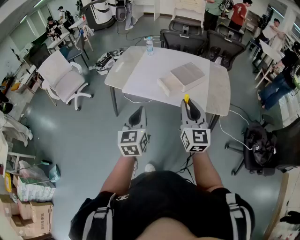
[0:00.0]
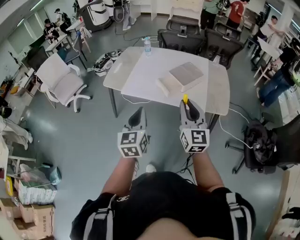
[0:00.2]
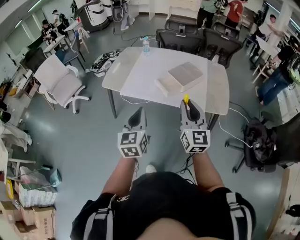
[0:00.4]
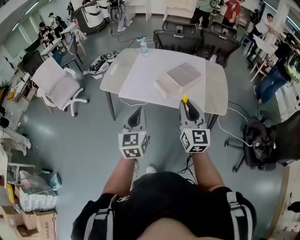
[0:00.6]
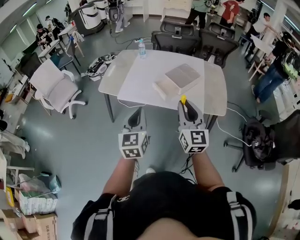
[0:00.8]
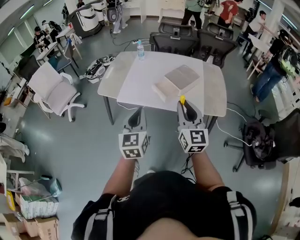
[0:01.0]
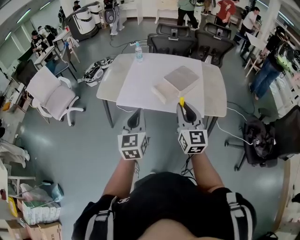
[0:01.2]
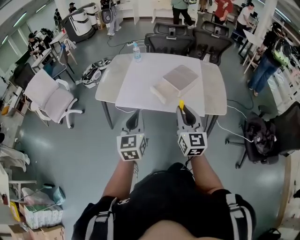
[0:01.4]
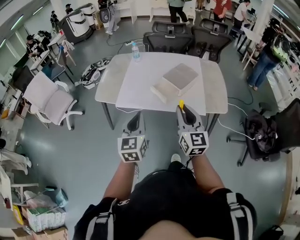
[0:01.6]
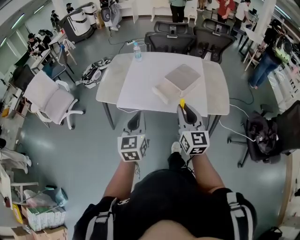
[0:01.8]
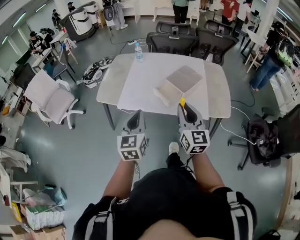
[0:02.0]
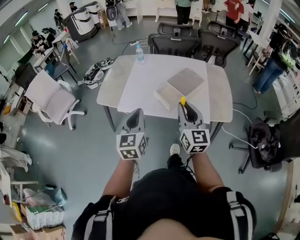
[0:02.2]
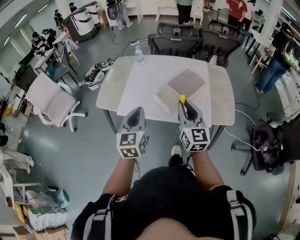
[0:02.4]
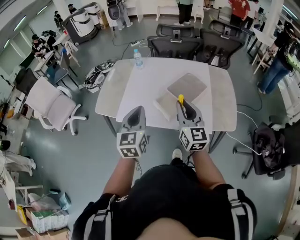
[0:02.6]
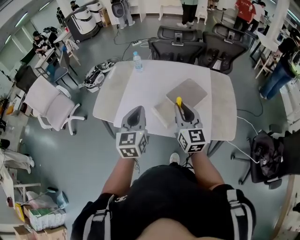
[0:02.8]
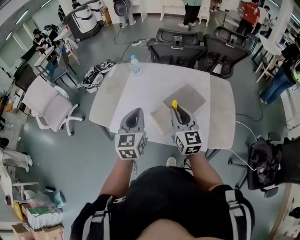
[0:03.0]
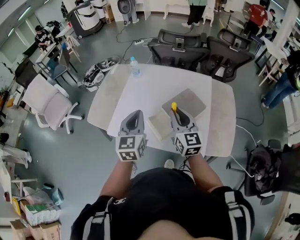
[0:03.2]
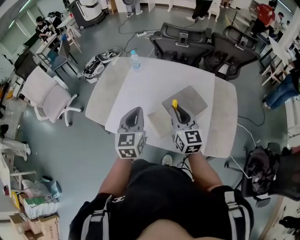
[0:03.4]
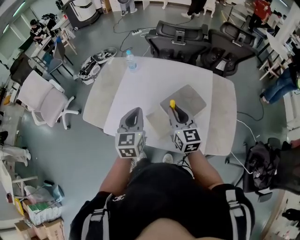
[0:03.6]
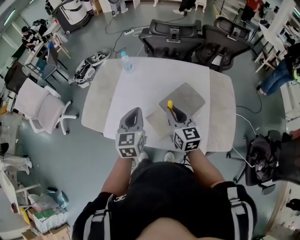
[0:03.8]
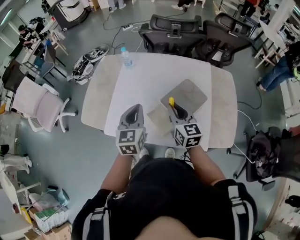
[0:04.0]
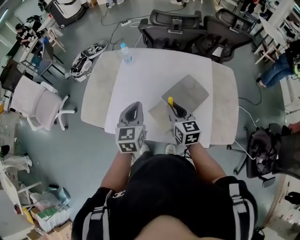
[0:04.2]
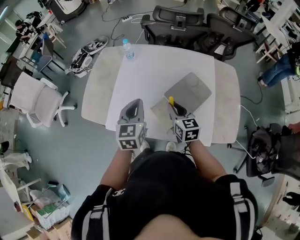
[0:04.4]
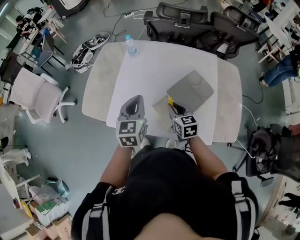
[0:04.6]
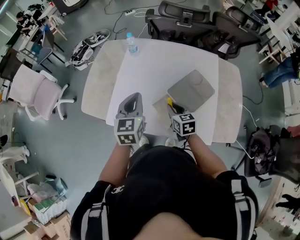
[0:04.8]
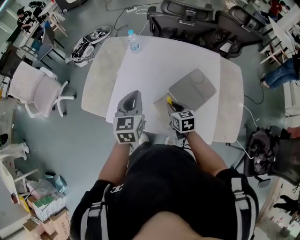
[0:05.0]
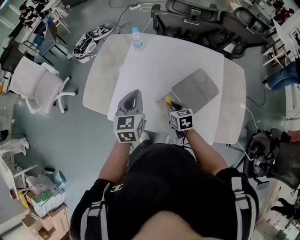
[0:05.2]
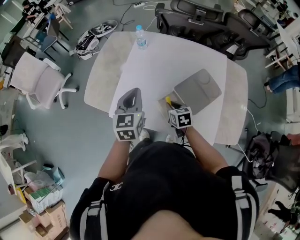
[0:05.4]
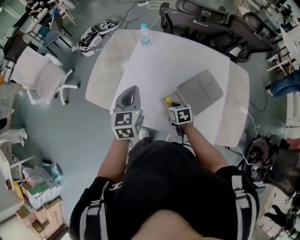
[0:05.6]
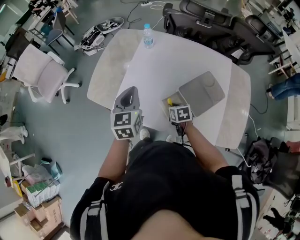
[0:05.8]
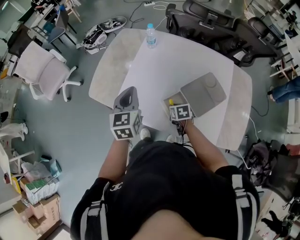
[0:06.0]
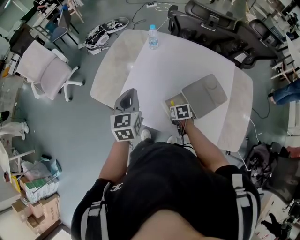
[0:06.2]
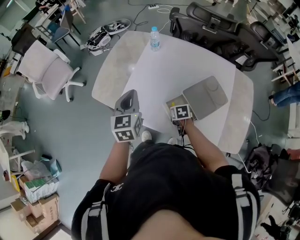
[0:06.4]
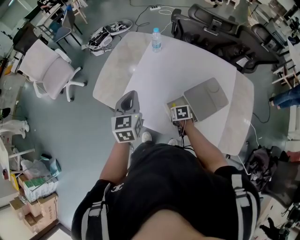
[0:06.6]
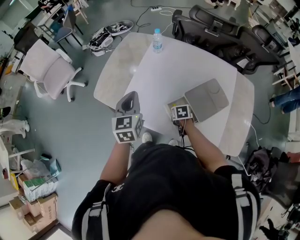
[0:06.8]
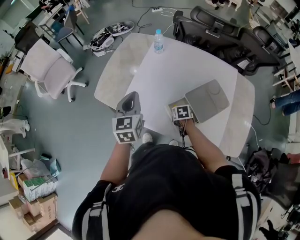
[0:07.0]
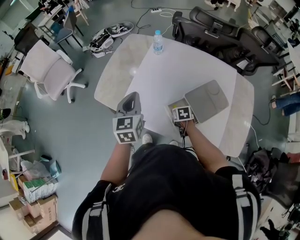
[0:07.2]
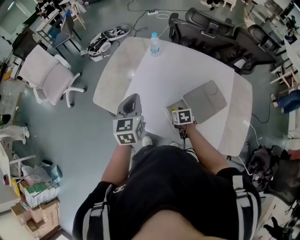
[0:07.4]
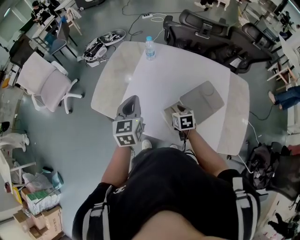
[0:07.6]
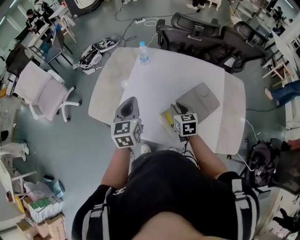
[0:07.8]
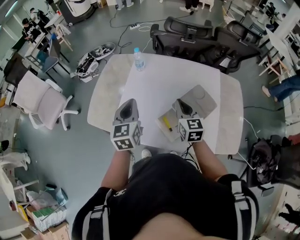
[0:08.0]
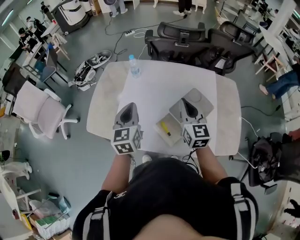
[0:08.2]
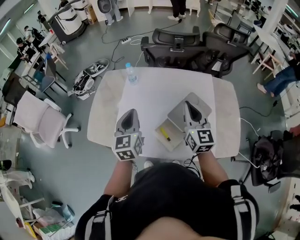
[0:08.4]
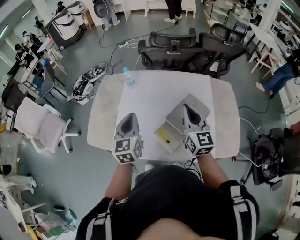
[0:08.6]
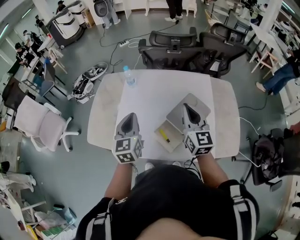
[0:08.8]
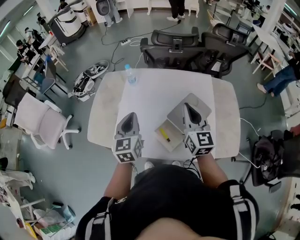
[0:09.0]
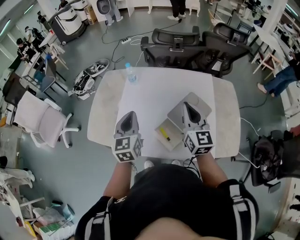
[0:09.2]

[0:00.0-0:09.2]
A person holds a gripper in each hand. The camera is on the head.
0:00.0 to 0:01.6: The two grippers go roughly 5 cm forward.
0:01.6 to 0:03.0: Both grippers travel together forward, some 25 cm.
0:03.0 to 0:04.6: The right gripper goes some 20 cm downward and forward, and rotates approximately 30 degrees, while the left gripper shifts approximately 15 cm forward and downward.
0:04.6 to 0:06.2: The left gripper shifts roughly 10 cm to the left; the right gripper is displaced downward by some 15 cm, and tilts its fingers approximately 30 degrees downward.
0:06.2 to 0:07.6: The right gripper moves upward, some 10 cm.
0:07.6 to 0:09.2: The right gripper travels upward by some 25 cm, angles its fingers upward, by some 50 degrees, and closes up; the left gripper heads to the right, covering some 5 cm.

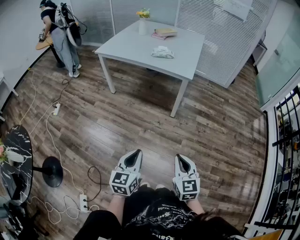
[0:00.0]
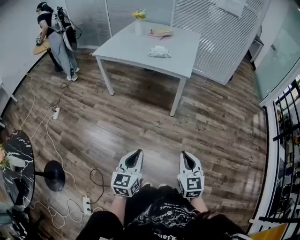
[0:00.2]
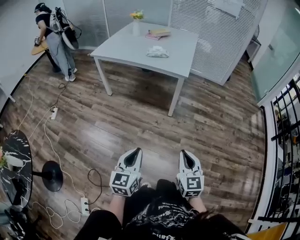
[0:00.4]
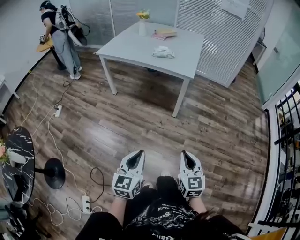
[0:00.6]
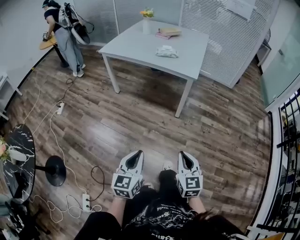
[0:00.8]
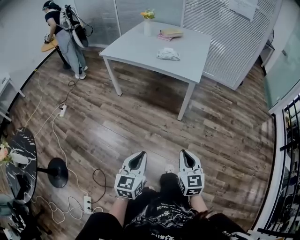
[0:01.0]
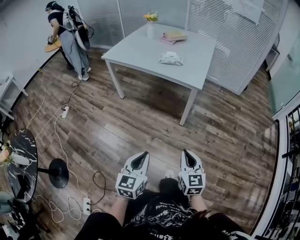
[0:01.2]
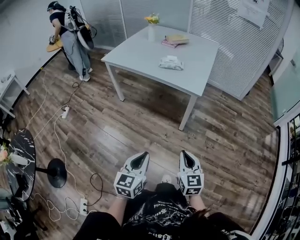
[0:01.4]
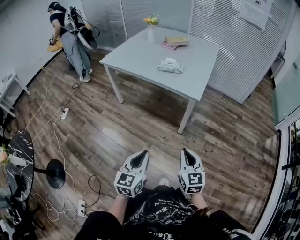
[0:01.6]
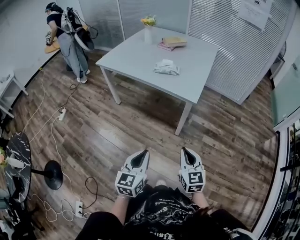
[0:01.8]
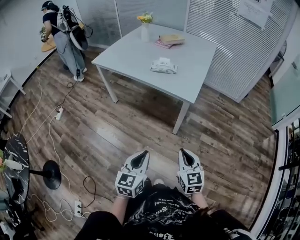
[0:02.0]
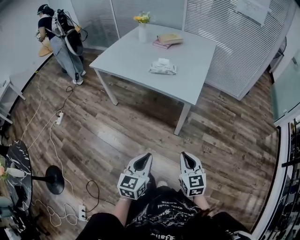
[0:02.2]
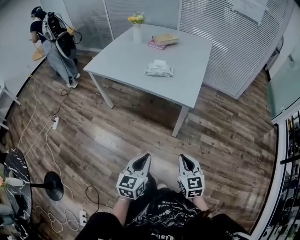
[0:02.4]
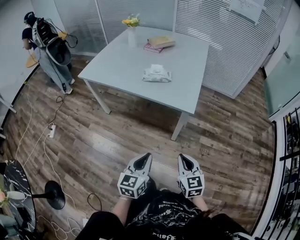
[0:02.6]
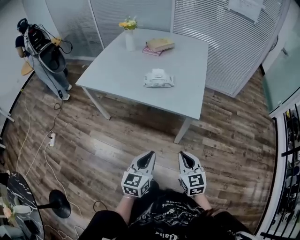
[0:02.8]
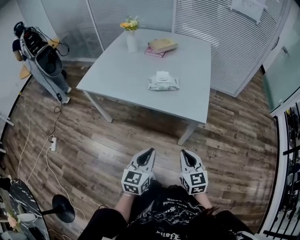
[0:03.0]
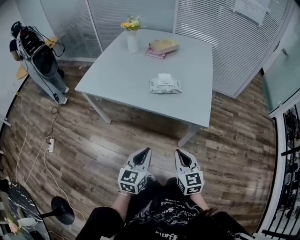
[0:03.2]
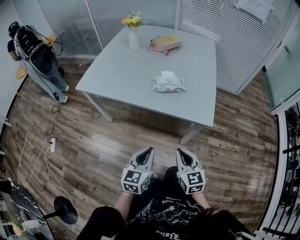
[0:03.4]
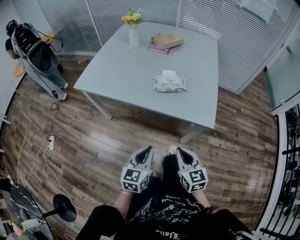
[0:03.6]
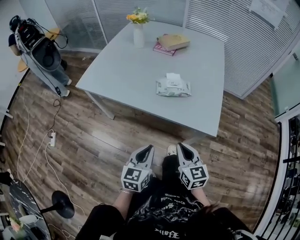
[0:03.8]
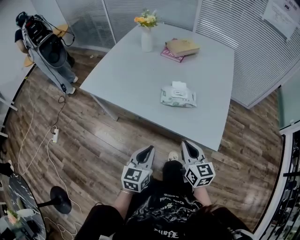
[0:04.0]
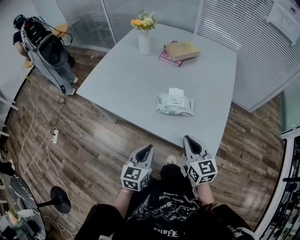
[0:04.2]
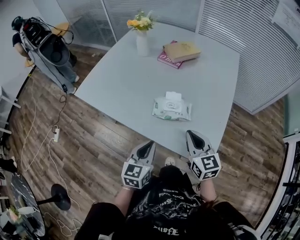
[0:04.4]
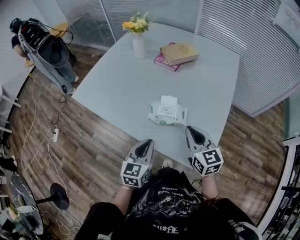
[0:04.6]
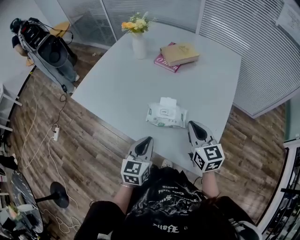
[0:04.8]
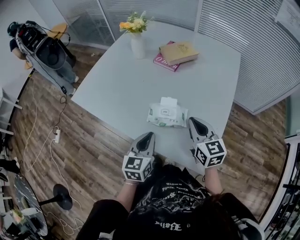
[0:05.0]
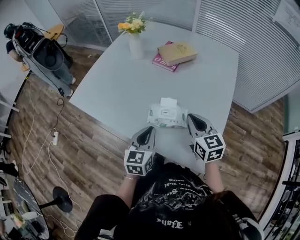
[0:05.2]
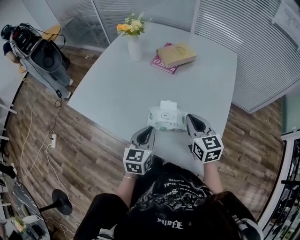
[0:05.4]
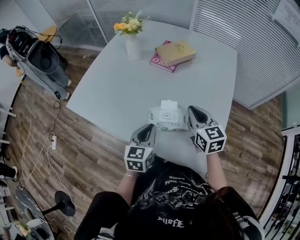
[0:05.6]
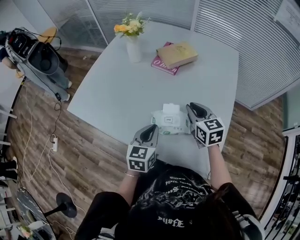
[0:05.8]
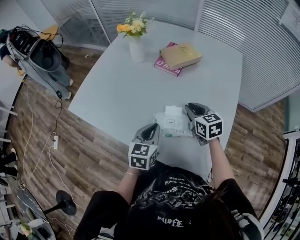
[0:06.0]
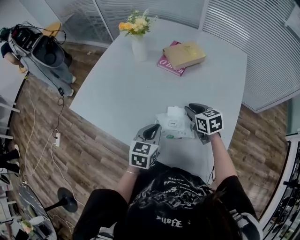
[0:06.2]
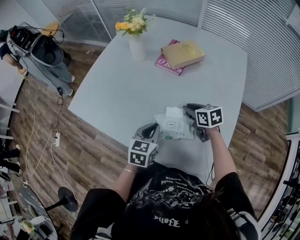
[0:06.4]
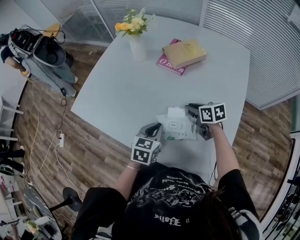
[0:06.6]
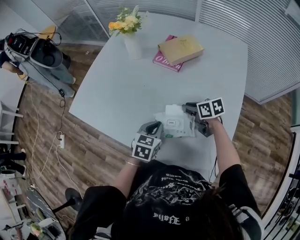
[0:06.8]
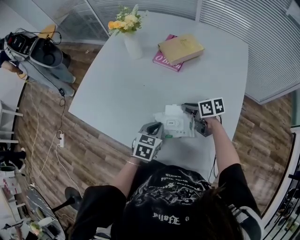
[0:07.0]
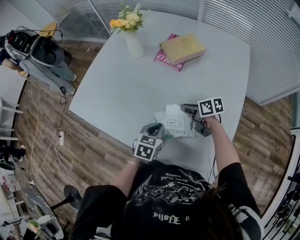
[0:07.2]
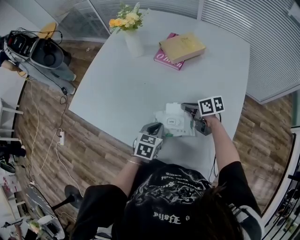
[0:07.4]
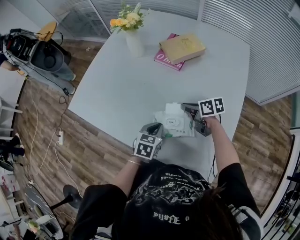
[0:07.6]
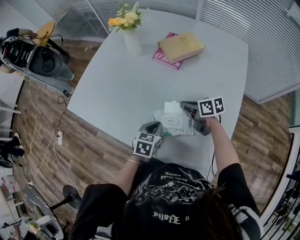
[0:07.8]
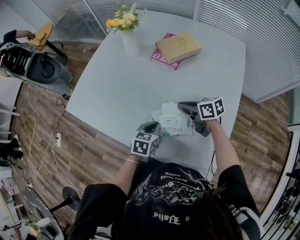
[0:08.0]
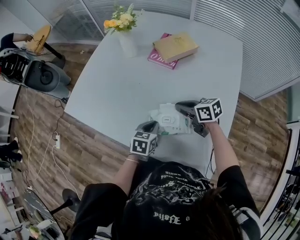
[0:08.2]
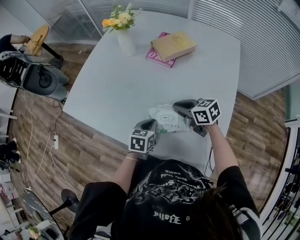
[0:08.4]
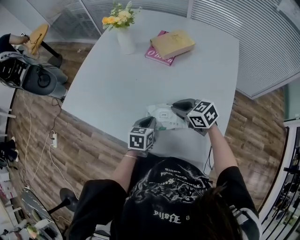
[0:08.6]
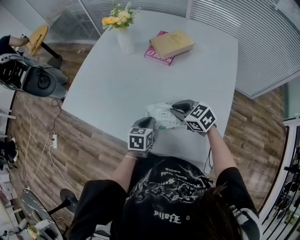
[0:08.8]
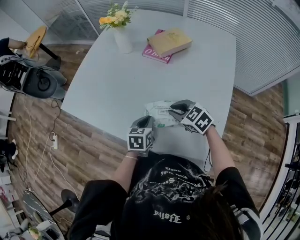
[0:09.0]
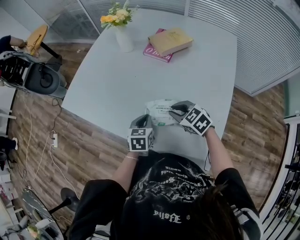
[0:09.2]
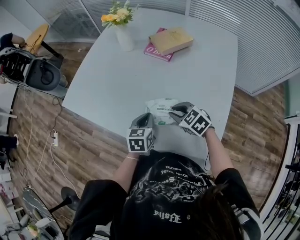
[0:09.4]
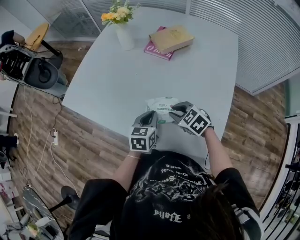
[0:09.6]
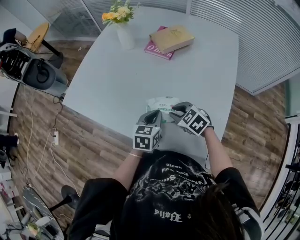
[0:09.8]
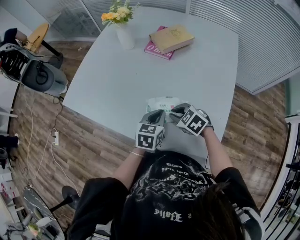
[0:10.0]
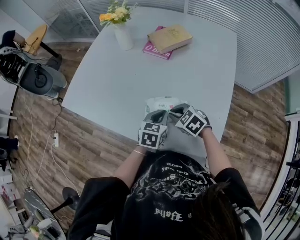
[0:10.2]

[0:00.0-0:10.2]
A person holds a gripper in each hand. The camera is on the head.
0:00.0 to 0:01.4: The right gripper heads forward, covering about 20 cm. Meanwhile the left gripper travels forward and to the right by about 15 cm.
0:01.4 to 0:03.0: The grippers both shift forward by approximately 30 cm.
0:03.0 to 0:04.4: The two grippers go about 30 cm forward.
0:04.4 to 0:05.8: The two grippers go some 20 cm forward.
0:05.8 to 0:07.2: Both grippers travel together downward, some 10 cm. The left gripper rotates approximately 20 degrees; the right gripper changes its angle by approximately 50 degrees.
0:07.2 to 0:08.8: The right gripper goes roughly 10 cm backward and upward, and rolls counterclockwise, seen from behind, by approximately 40 degrees.
0:08.8 to 0:10.2: The left gripper is displaced to the right by roughly 5 cm. Meanwhile the right gripper changes place by about 5 cm.

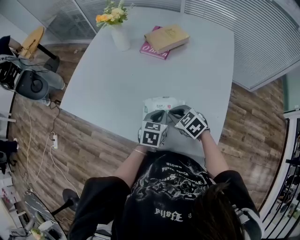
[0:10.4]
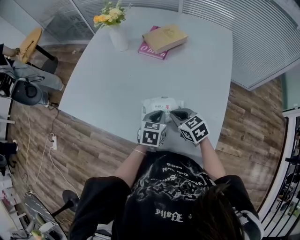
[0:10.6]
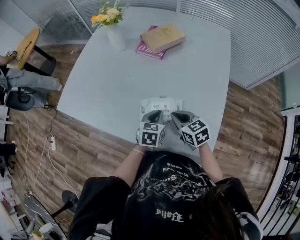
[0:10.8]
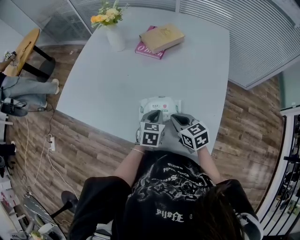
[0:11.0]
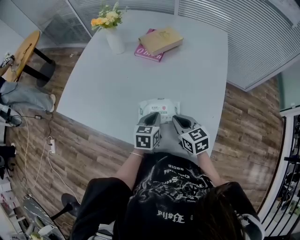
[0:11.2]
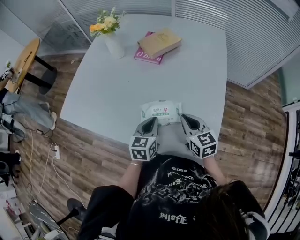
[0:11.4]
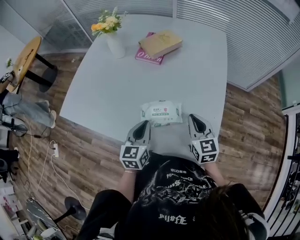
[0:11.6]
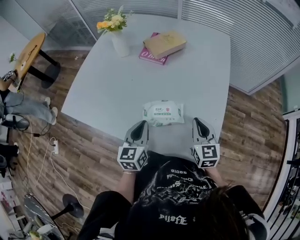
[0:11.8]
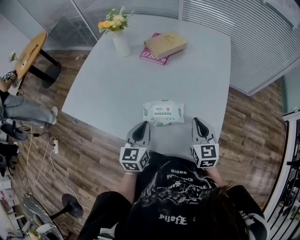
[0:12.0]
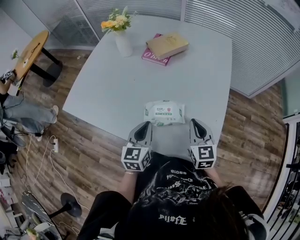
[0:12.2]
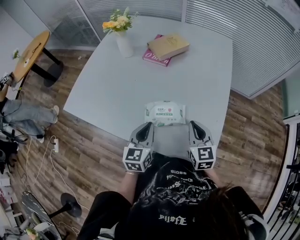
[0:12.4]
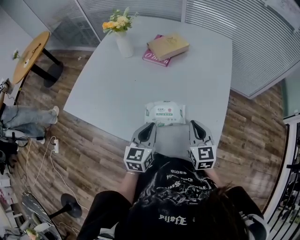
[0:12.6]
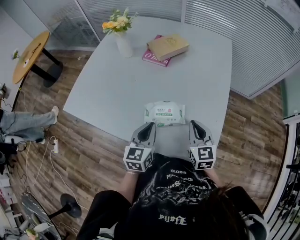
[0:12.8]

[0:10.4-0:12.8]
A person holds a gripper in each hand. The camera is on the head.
0:10.4 to 0:11.6: The left gripper goes some 10 cm upward and to the left, and changes its angle by some 20 degrees. Meanwhile the right gripper shifts some 15 cm to the right and upward, and changes its angle by some 50 degrees.
0:11.6 to 0:12.8: The grippers make only small movements.

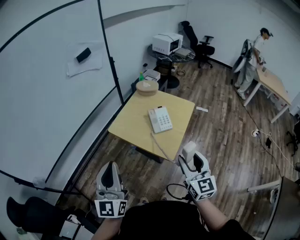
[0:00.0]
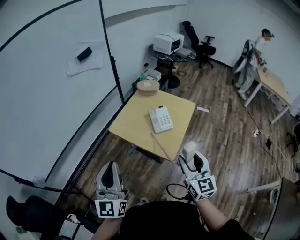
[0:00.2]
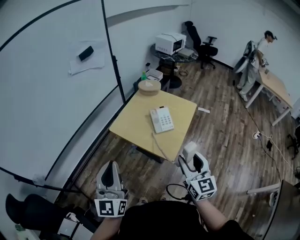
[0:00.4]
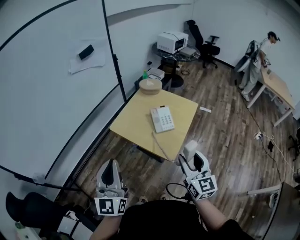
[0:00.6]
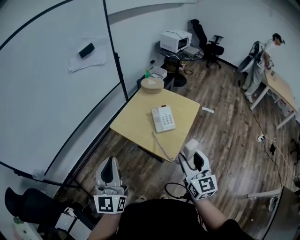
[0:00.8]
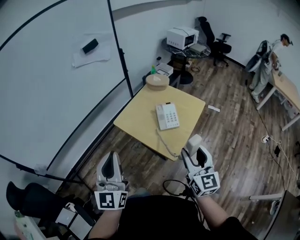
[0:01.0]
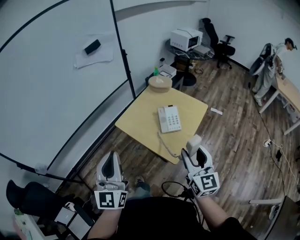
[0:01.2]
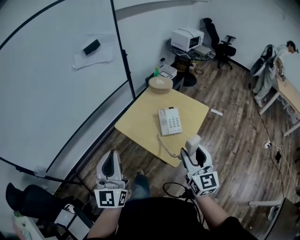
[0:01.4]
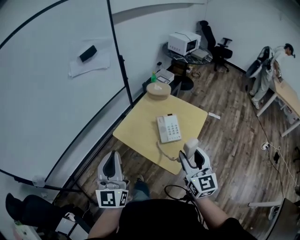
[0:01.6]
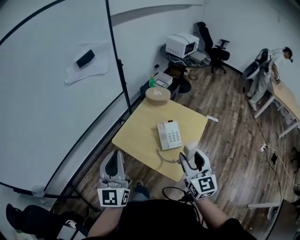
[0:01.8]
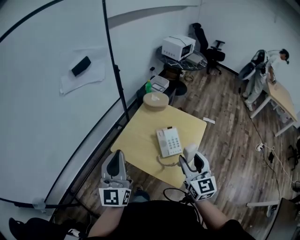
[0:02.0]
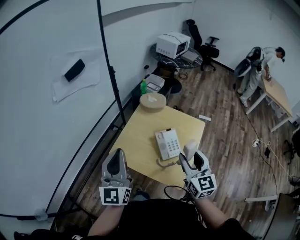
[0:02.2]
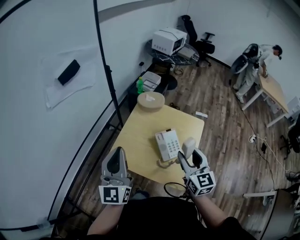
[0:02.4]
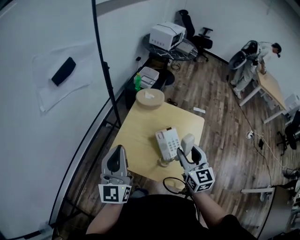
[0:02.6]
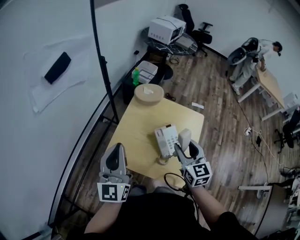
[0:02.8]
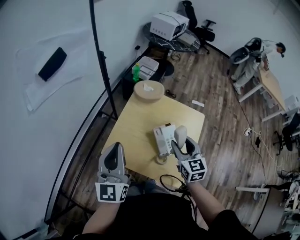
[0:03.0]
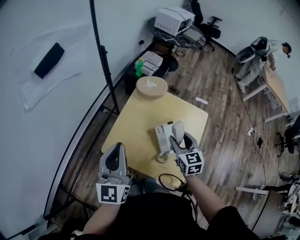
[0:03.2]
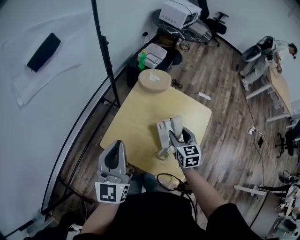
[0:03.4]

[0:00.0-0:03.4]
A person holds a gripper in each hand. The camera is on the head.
0:00.0 to 0:01.6: The grippers both shift forward by approximately 15 cm.
0:01.6 to 0:03.4: The right gripper shifts about 35 cm forward and downward, and tips its fingers downward by some 30 degrees; the left gripper heads forward, covering some 30 cm.
